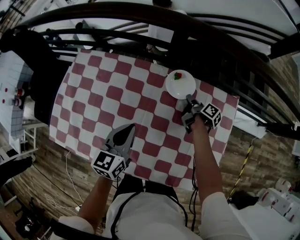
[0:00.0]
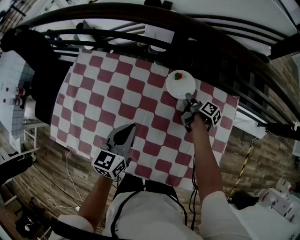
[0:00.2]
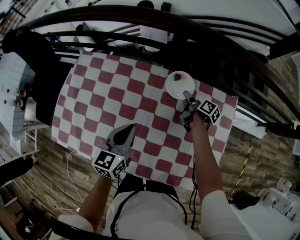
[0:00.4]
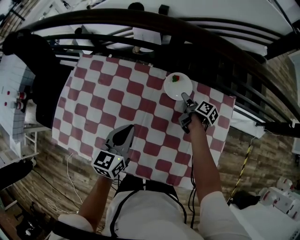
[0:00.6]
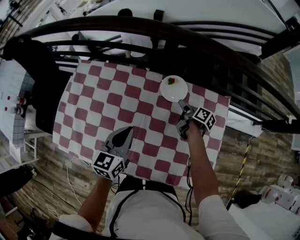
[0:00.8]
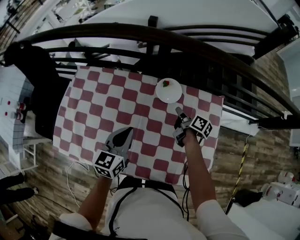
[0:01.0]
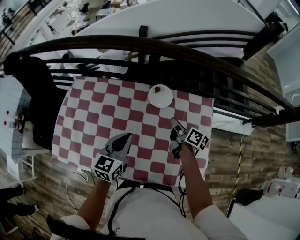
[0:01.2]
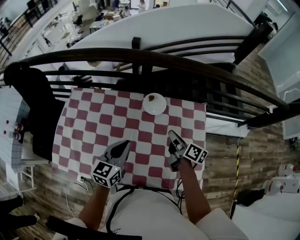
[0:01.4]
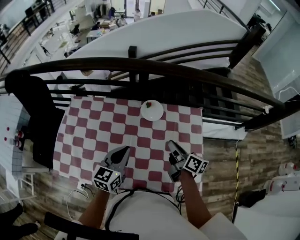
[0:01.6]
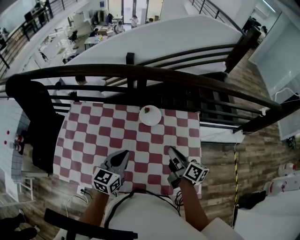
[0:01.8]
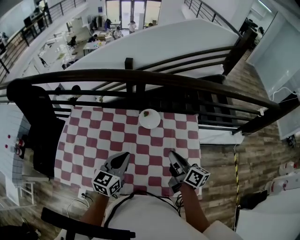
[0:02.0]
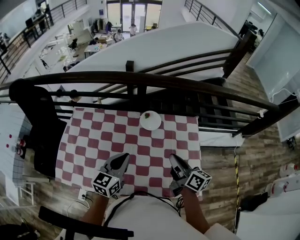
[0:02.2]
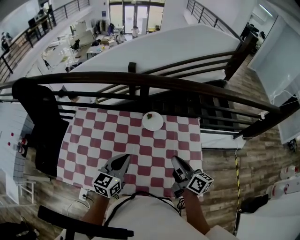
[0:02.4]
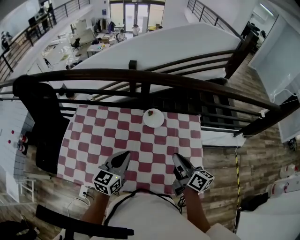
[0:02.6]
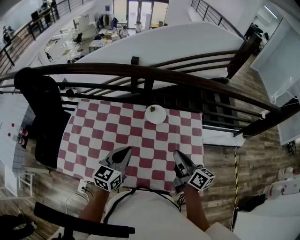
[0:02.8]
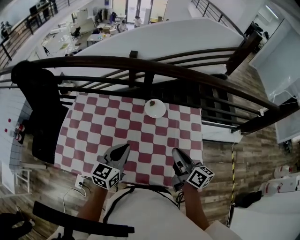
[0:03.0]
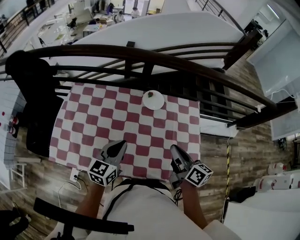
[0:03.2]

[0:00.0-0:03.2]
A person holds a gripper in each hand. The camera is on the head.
0:00.0 to 0:01.6: The left gripper goes some 10 cm upward.
0:01.6 to 0:03.2: The left gripper moves some 5 cm.

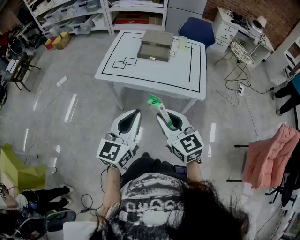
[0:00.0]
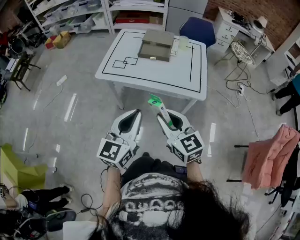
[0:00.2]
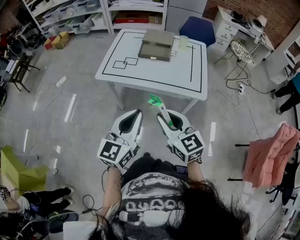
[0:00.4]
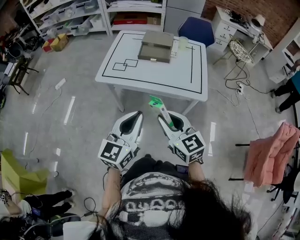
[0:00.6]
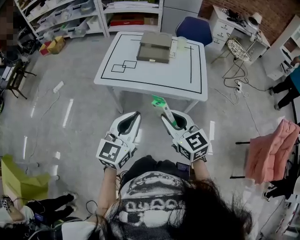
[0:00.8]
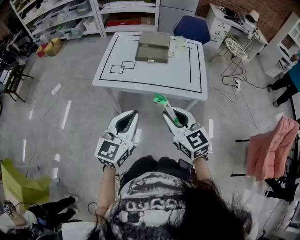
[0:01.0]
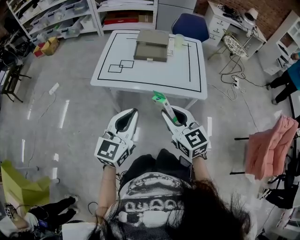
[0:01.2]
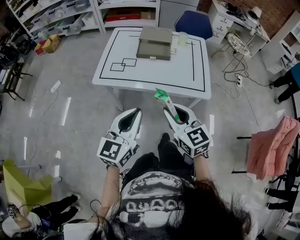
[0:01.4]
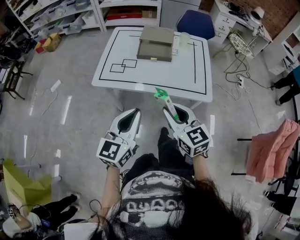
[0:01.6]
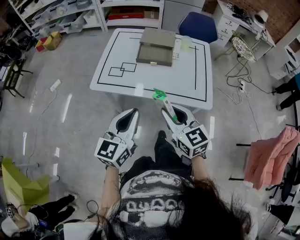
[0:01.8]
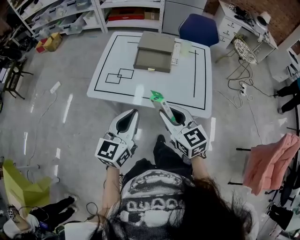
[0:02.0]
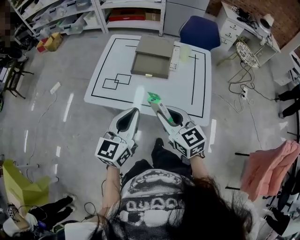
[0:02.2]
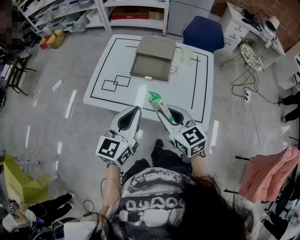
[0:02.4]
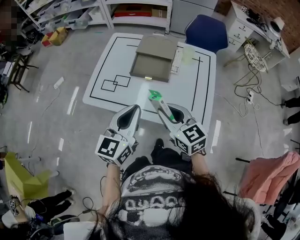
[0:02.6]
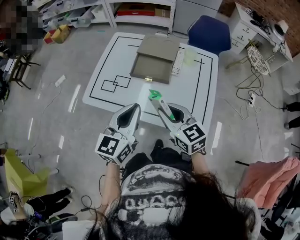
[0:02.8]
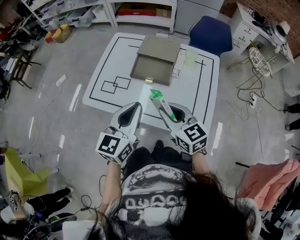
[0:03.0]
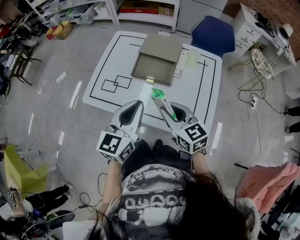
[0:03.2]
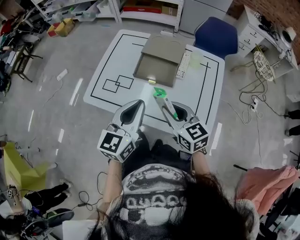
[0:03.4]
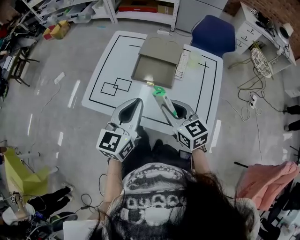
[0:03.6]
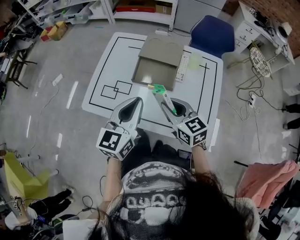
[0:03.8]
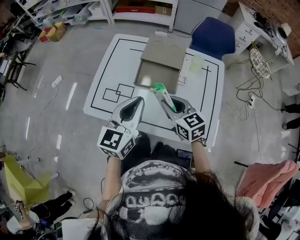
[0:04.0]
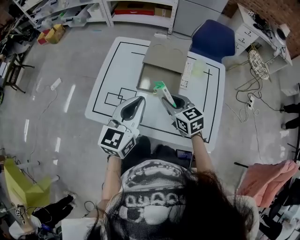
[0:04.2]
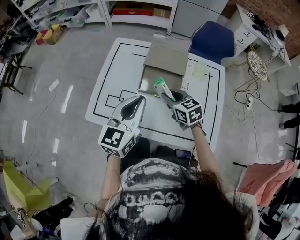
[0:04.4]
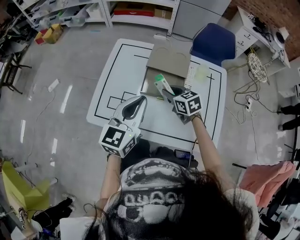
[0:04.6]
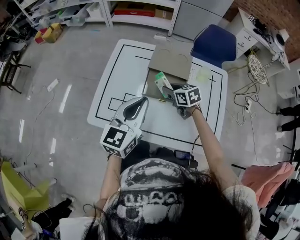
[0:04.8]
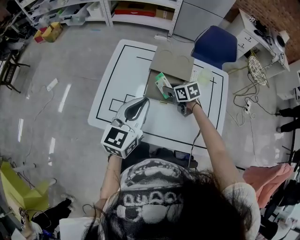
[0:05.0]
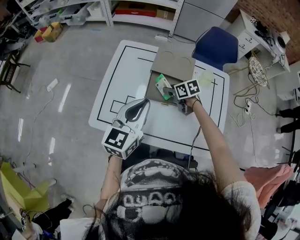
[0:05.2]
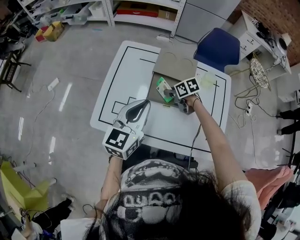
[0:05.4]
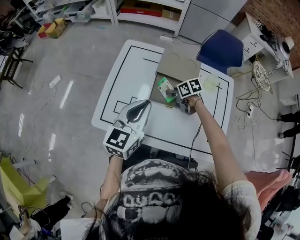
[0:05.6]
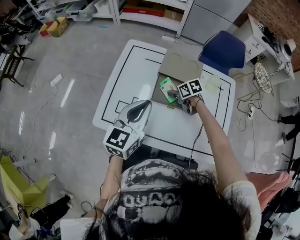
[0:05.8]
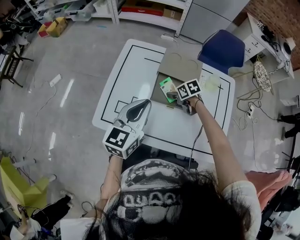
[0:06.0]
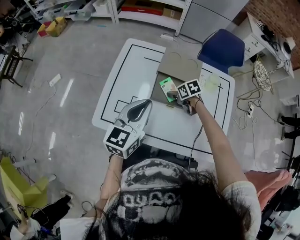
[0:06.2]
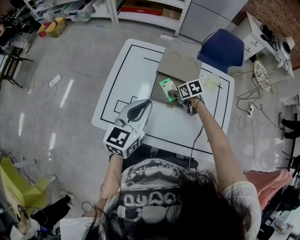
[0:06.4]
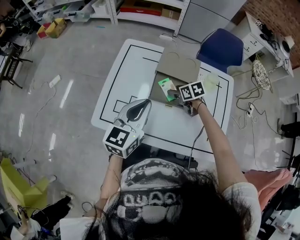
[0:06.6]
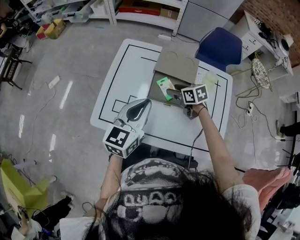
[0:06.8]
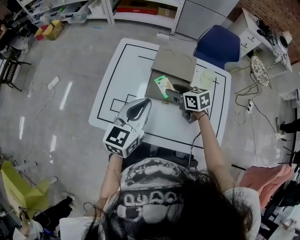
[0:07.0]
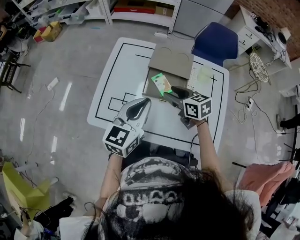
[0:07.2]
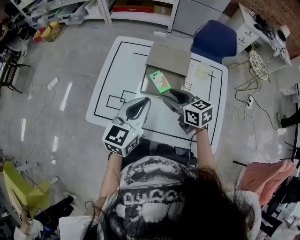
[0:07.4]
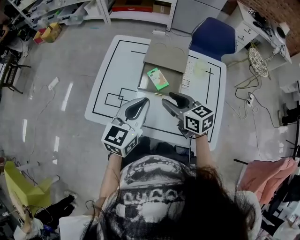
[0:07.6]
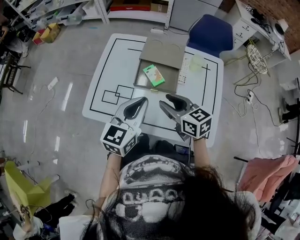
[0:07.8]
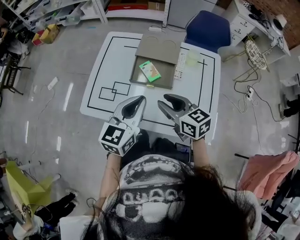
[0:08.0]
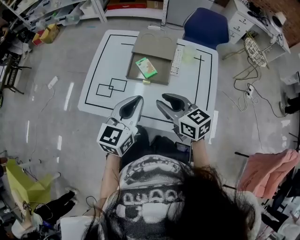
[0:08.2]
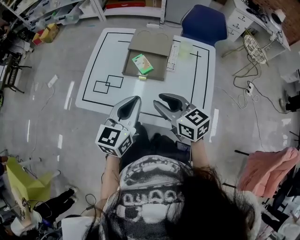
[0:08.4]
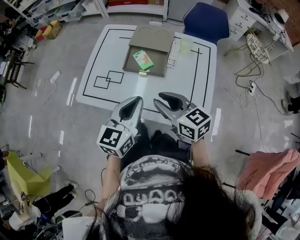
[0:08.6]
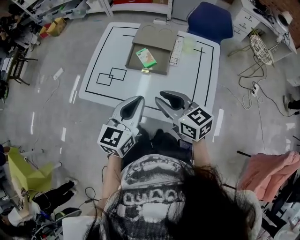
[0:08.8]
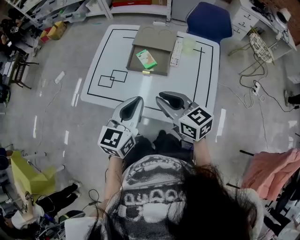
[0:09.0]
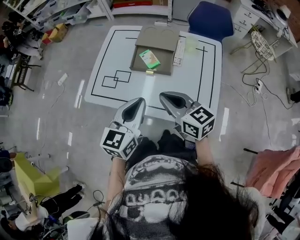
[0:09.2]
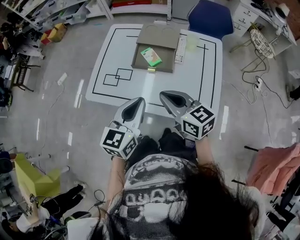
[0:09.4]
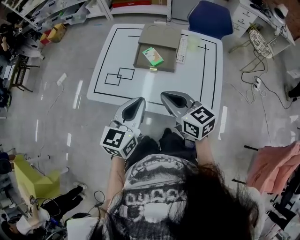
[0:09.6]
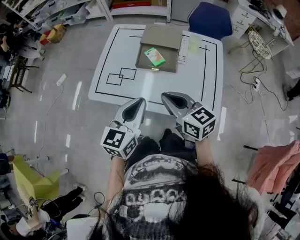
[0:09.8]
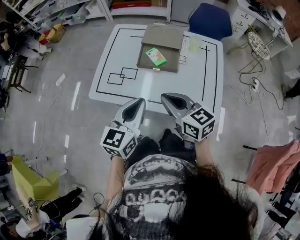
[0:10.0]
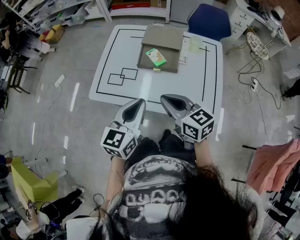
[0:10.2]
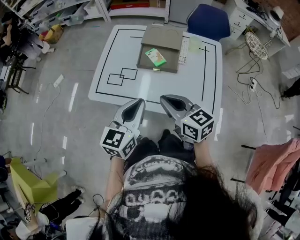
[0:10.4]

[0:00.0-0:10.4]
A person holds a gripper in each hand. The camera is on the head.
0:00.0 to 0:01.4: Both grippers move forward, roughly 10 cm.
0:01.4 to 0:03.0: Both grippers travel together forward and to the right, approximately 30 cm.
0:03.0 to 0:04.4: The right gripper shifts about 20 cm forward and downward, while the left gripper heads forward and to the left, covering roughly 15 cm.
0:04.4 to 0:06.0: The left gripper is displaced forward by approximately 5 cm, while the right gripper goes roughly 20 cm downward and forward, changes its angle by some 30 degrees, and opens its fingers.
0:06.0 to 0:07.4: The left gripper goes about 5 cm to the right. Meanwhile the right gripper moves upward and backward, some 20 cm, and angles its fingers upward, by approximately 30 degrees.
0:07.4 to 0:09.0: The left gripper shifts about 15 cm backward and to the right; the right gripper goes about 20 cm backward, and closes its fingers.
0:09.0 to 0:10.4: The grippers both shift to the left by roughly 10 cm.

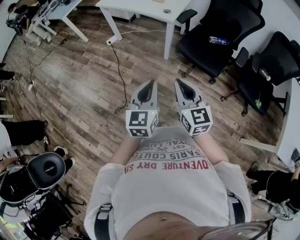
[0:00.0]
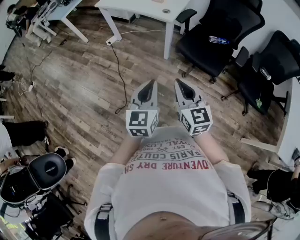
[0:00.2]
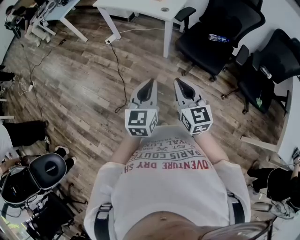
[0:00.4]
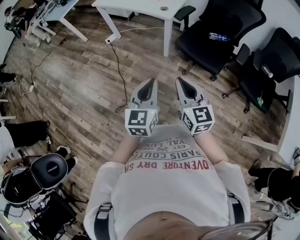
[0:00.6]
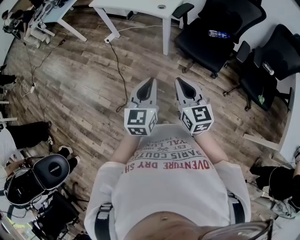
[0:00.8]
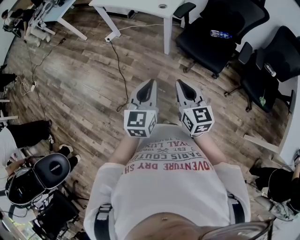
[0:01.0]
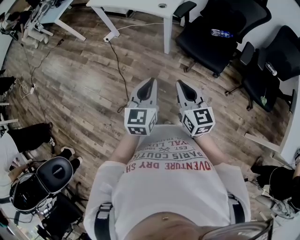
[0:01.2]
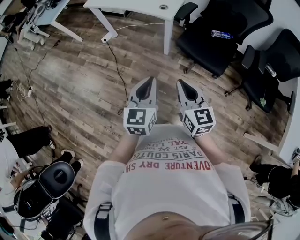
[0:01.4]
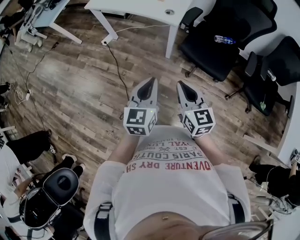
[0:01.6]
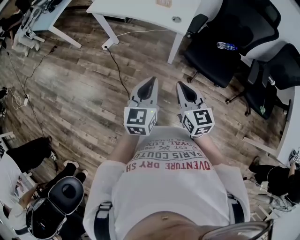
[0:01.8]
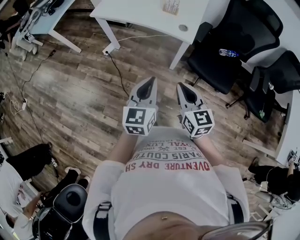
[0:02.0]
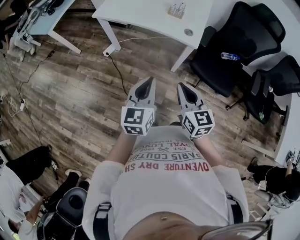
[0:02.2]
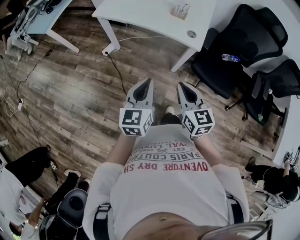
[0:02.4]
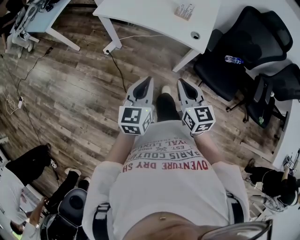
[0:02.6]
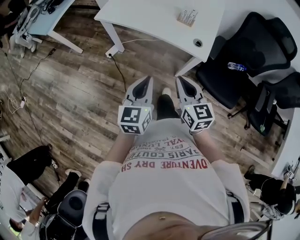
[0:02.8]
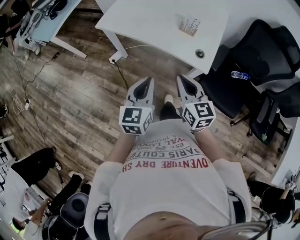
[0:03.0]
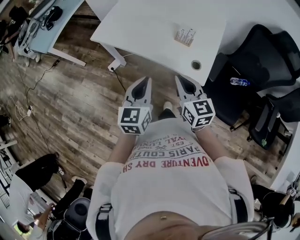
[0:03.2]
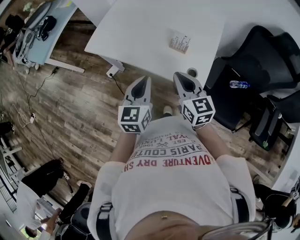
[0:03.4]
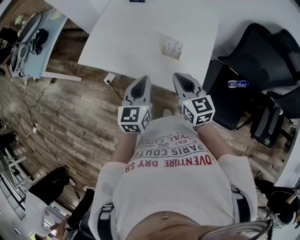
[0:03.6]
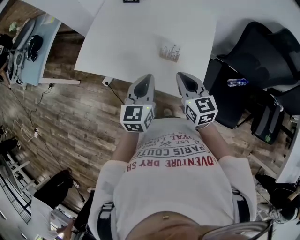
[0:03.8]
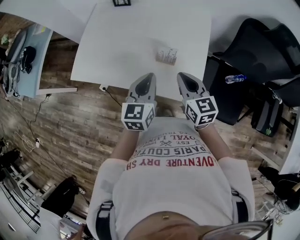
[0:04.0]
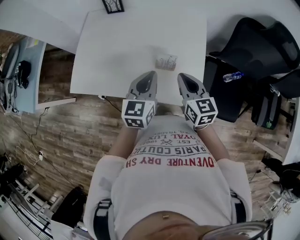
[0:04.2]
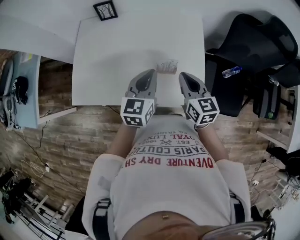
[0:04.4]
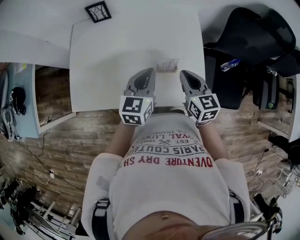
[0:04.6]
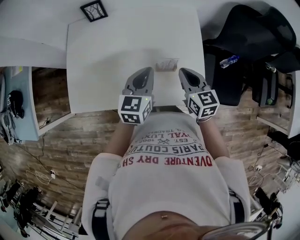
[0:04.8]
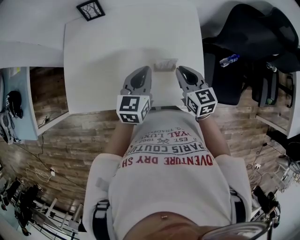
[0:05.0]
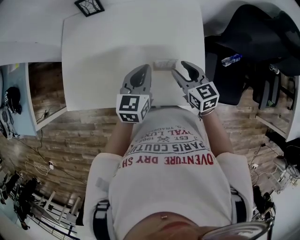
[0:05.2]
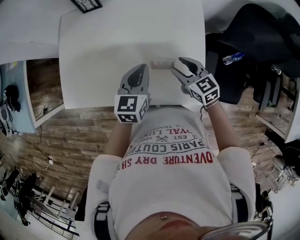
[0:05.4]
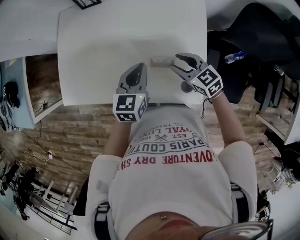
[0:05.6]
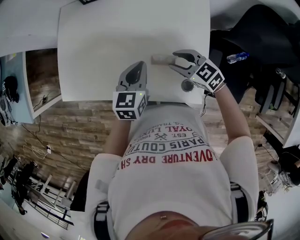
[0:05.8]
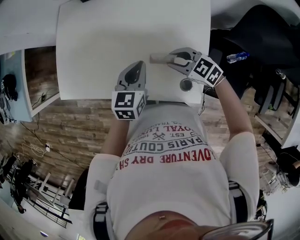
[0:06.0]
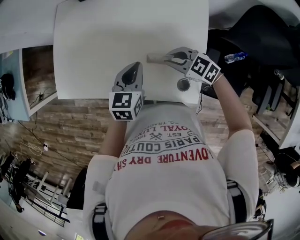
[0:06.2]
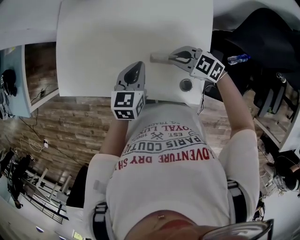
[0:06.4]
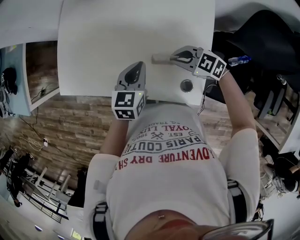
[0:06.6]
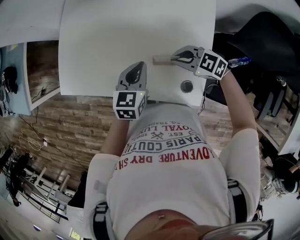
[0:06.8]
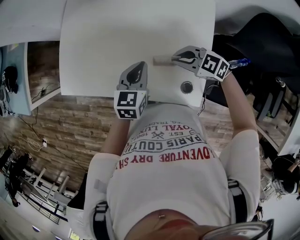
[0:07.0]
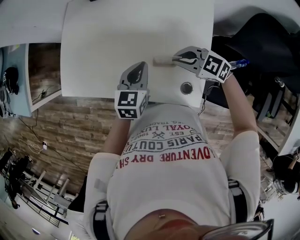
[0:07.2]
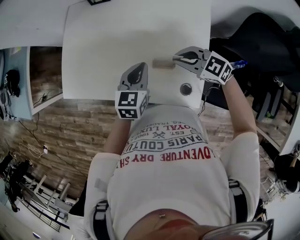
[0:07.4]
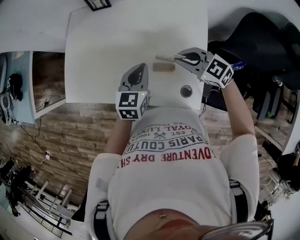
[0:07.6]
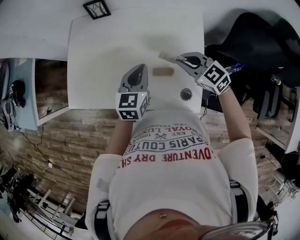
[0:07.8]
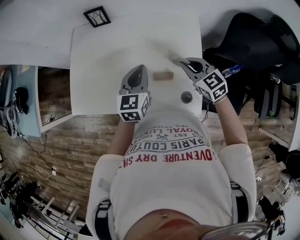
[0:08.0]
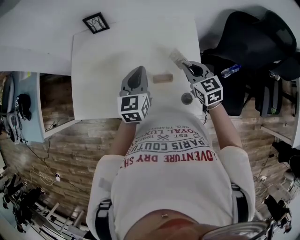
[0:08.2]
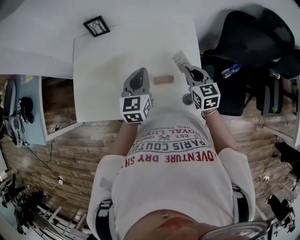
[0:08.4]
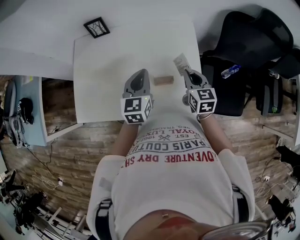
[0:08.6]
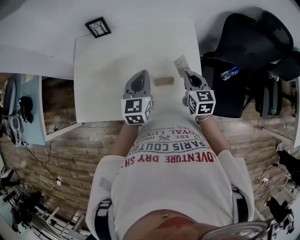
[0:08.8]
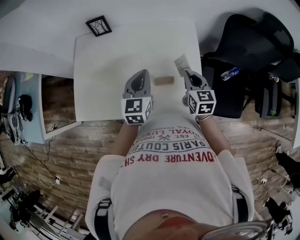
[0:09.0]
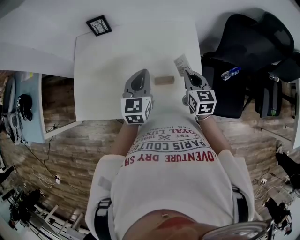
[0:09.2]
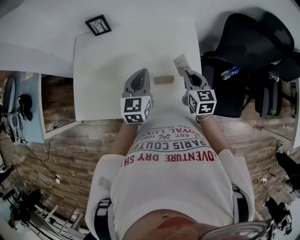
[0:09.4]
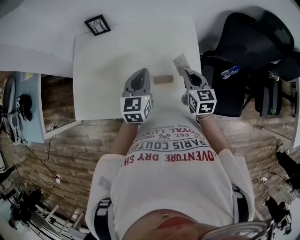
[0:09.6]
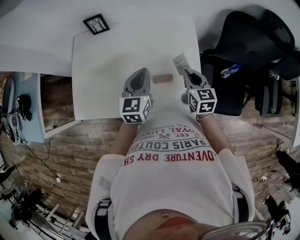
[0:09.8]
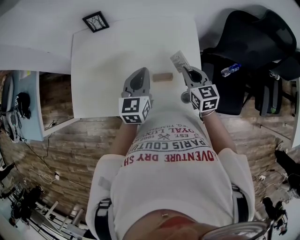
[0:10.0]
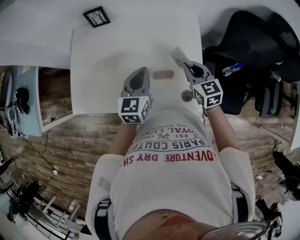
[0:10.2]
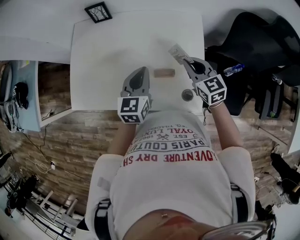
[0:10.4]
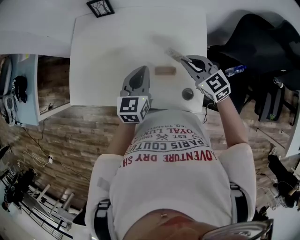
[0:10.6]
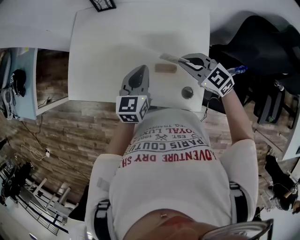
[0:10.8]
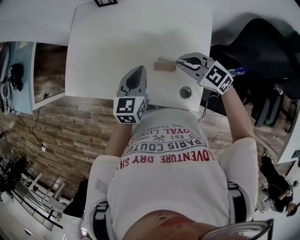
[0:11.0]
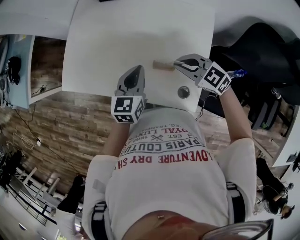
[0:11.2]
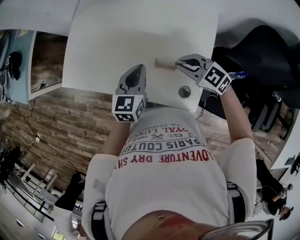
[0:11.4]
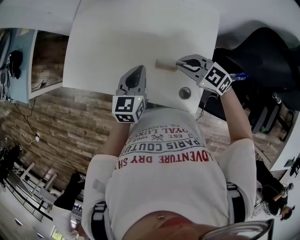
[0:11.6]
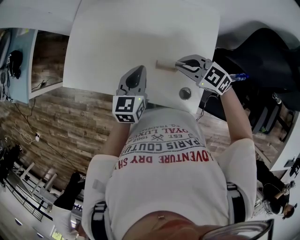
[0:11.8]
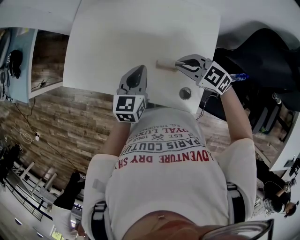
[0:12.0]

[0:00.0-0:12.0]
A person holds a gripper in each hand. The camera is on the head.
0:00.0 to 0:01.6: Both grippers travel together forward, approximately 15 cm.
0:01.6 to 0:03.0: The two grippers go approximately 35 cm forward and to the left.
0:03.0 to 0:04.4: The left gripper moves approximately 40 cm, and rotates about 30 degrees; the right gripper changes place by about 35 cm, and changes its angle by about 20 degrees.
0:04.4 to 0:06.0: The grippers both shift downward by approximately 10 cm. The right gripper changes its angle by some 60 degrees, and opens.
0:06.0 to 0:07.6: The right gripper shifts about 10 cm upward, and closes up.
0:07.6 to 0:09.0: The right gripper ends up about 10 cm from where it was, and changes its angle by about 60 degrees. The left gripper goes some 5 cm upward.
0:09.0 to 0:10.4: The right gripper rotates roughly 20 degrees.
0:10.4 to 0:12.0: The right gripper ends up roughly 10 cm from where it was, and swivels about 50 degrees.
